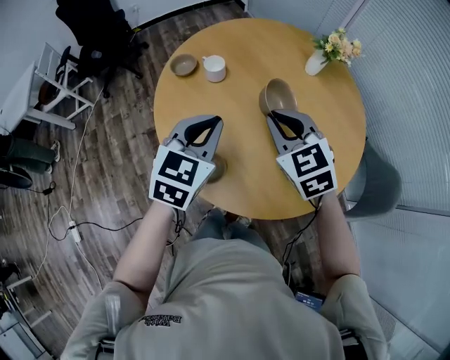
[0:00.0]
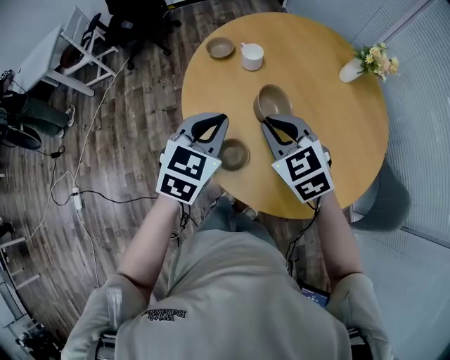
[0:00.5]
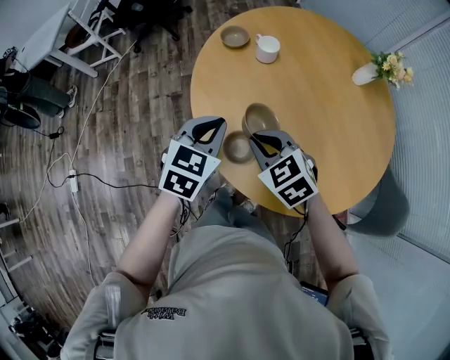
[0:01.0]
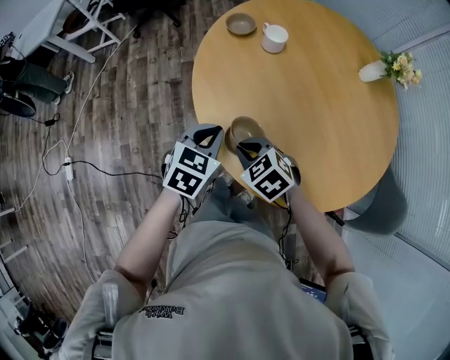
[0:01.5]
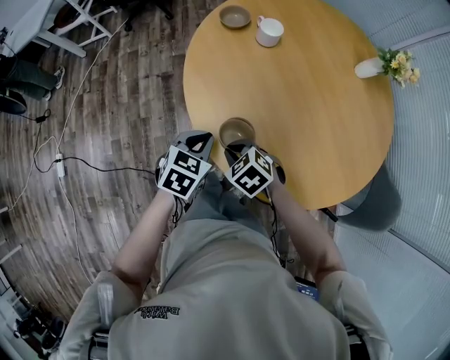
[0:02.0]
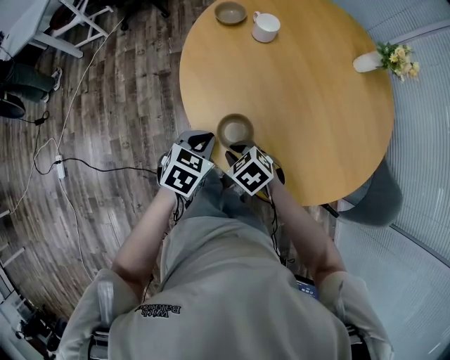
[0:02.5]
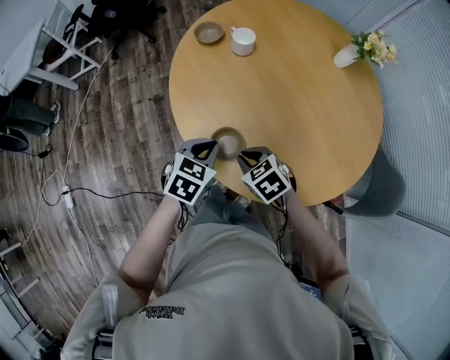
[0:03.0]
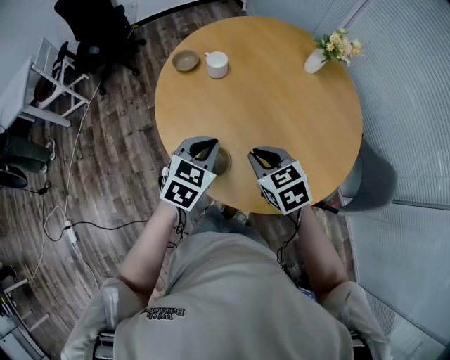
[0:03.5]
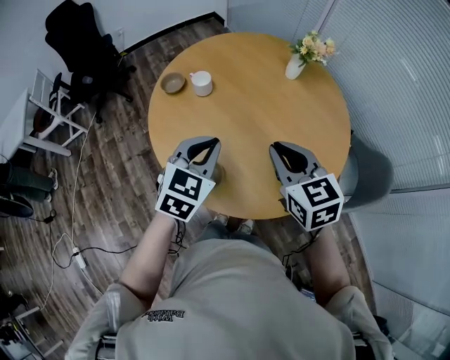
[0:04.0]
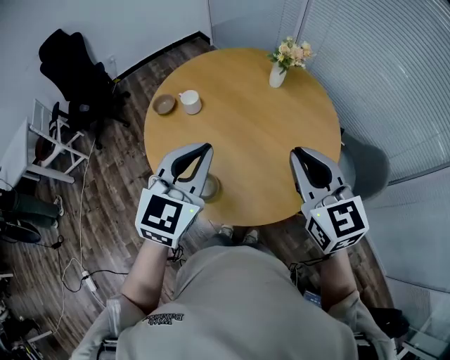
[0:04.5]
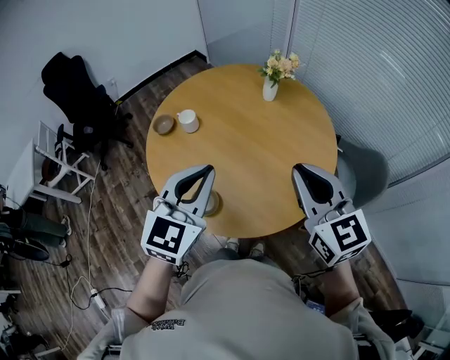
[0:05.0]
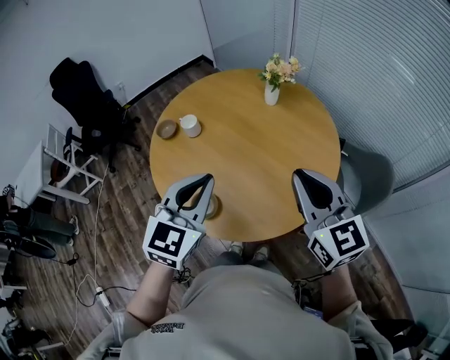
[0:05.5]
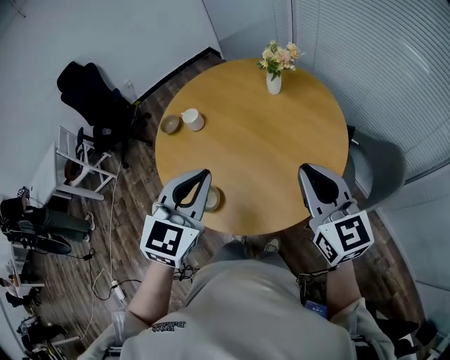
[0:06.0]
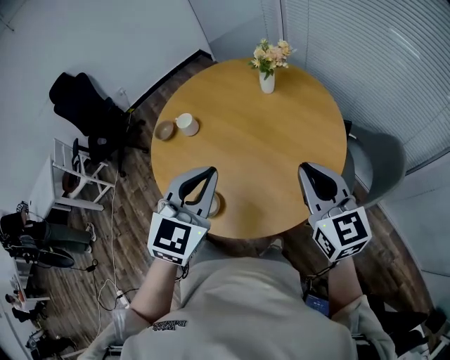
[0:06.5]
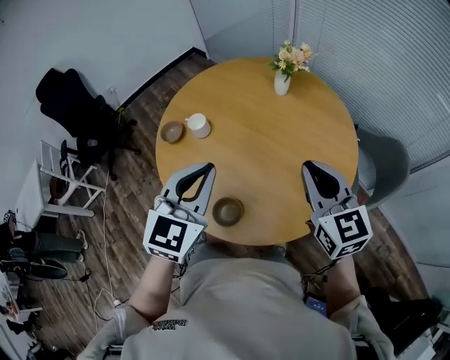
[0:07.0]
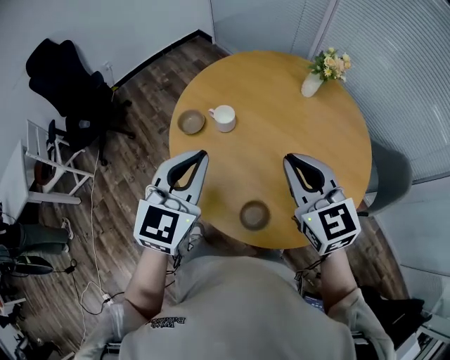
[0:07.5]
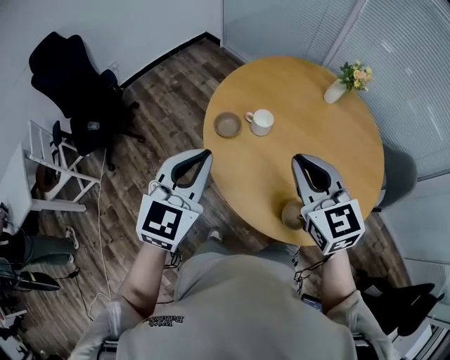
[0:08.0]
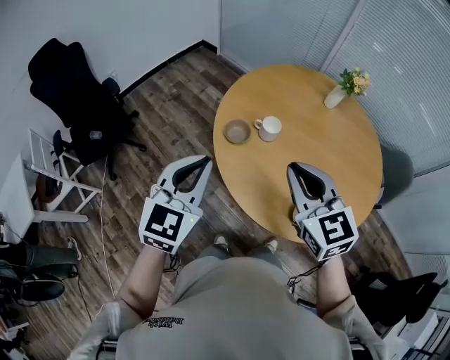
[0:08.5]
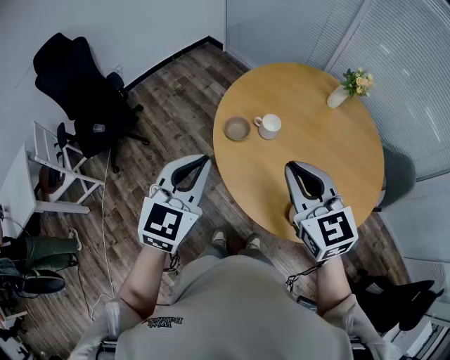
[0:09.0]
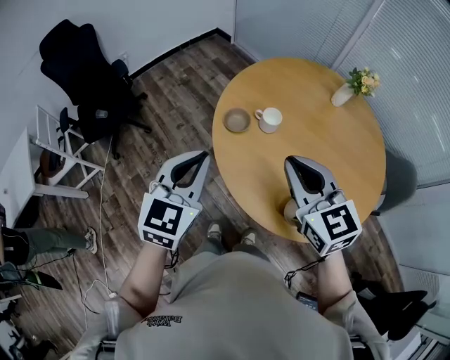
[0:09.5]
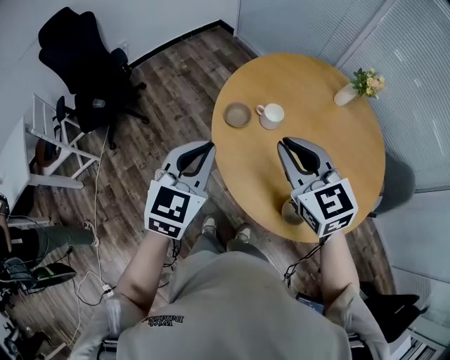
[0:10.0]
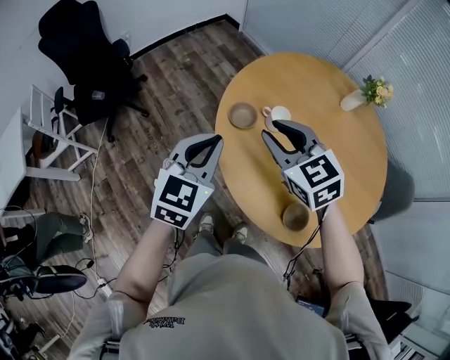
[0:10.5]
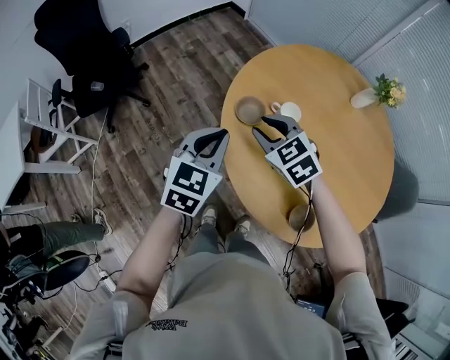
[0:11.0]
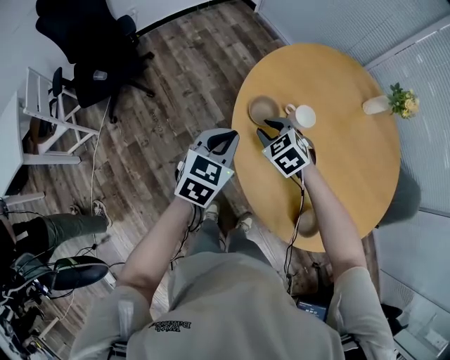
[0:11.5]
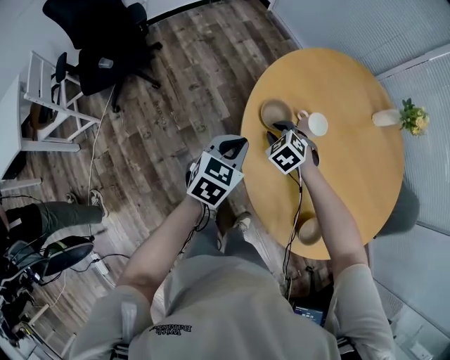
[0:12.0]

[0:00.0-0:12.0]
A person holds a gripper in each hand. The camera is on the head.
0:00.0 to 0:02.0: The grippers both shift downward by about 20 cm. The right gripper changes its angle by about 40 degrees, while the left gripper turns by roughly 30 degrees.
0:02.0 to 0:04.0: Both grippers travel together upward, approximately 20 cm. The left gripper swivels approximately 30 degrees. The right gripper angles its fingers upward, by some 30 degrees.
0:04.0 to 0:06.0: The left gripper heads upward, to the right and backward, covering about 15 cm; the right gripper is displaced to the right and upward by about 20 cm, and turns by some 20 degrees.
0:06.0 to 0:08.0: The two grippers travel together, to the left, approximately 40 cm.
0:08.0 to 0:10.0: The right gripper is displaced to the left by some 5 cm.
0:10.0 to 0:12.0: The right gripper shifts about 35 cm downward and forward, and tips its fingers downward by about 40 degrees; the left gripper moves downward and forward, roughly 20 cm, and changes its angle by approximately 20 degrees.

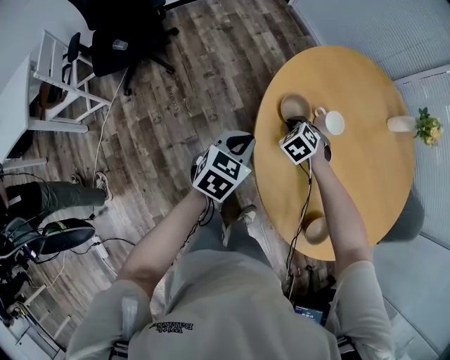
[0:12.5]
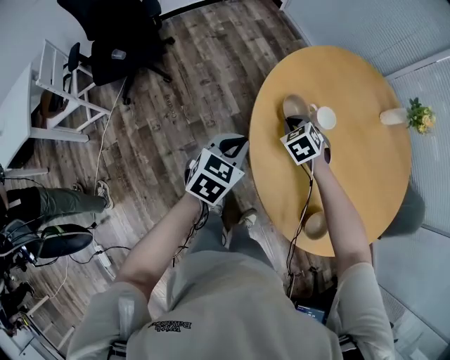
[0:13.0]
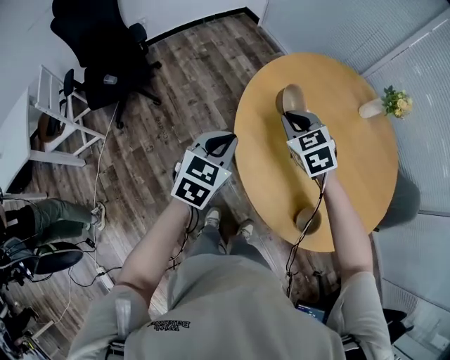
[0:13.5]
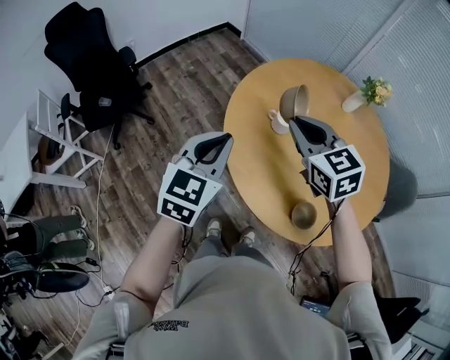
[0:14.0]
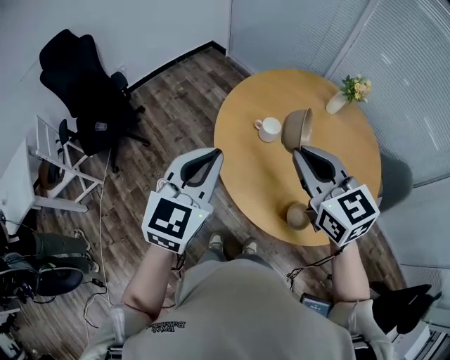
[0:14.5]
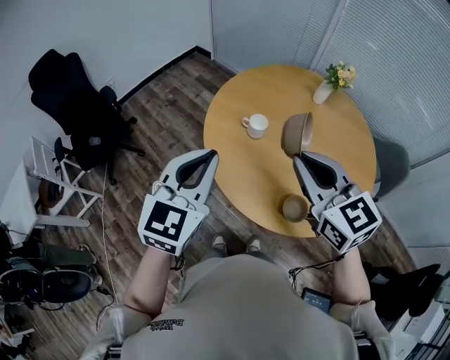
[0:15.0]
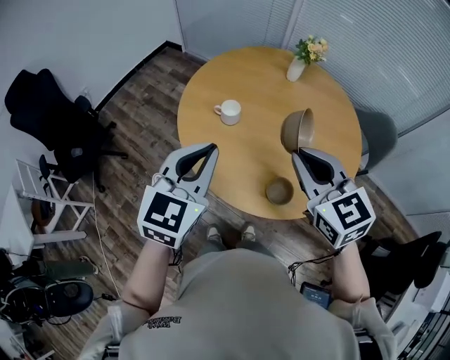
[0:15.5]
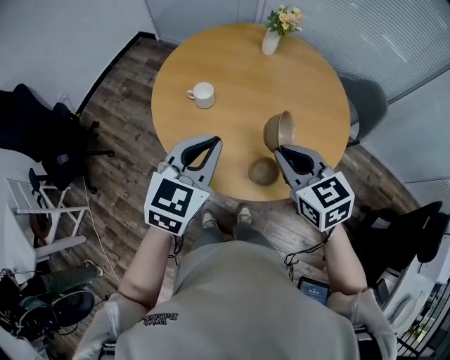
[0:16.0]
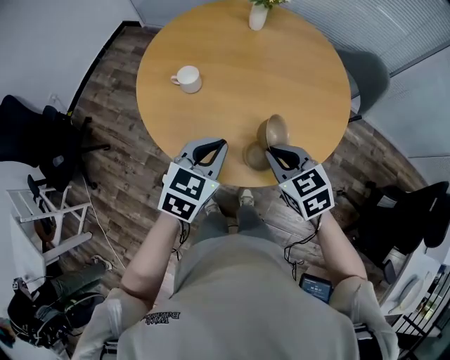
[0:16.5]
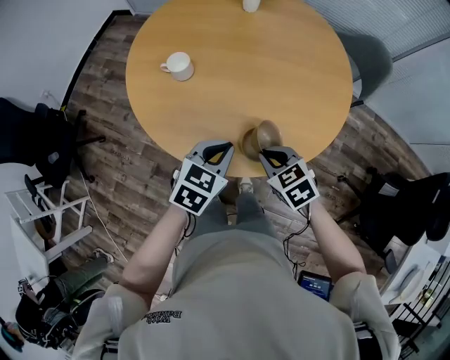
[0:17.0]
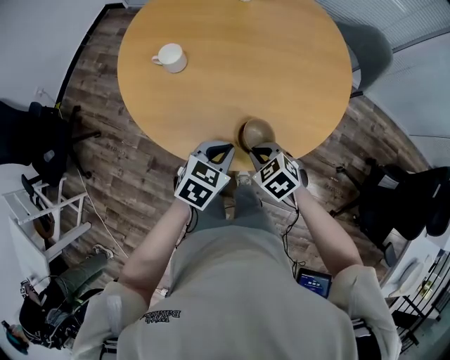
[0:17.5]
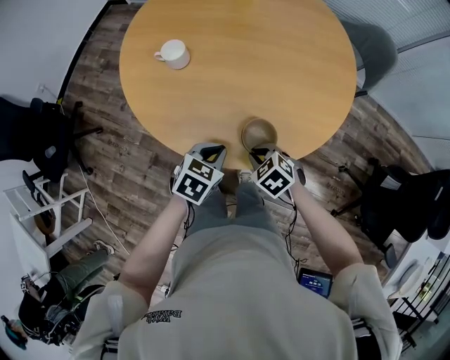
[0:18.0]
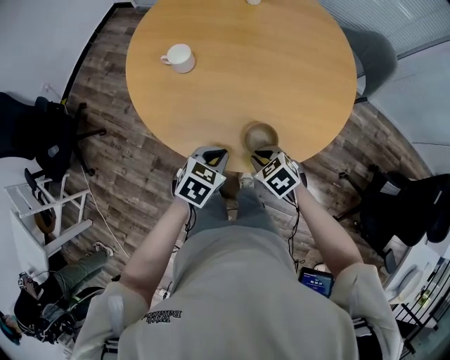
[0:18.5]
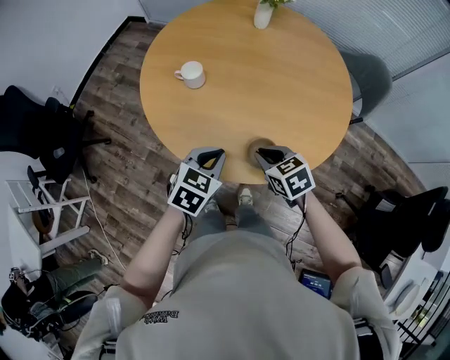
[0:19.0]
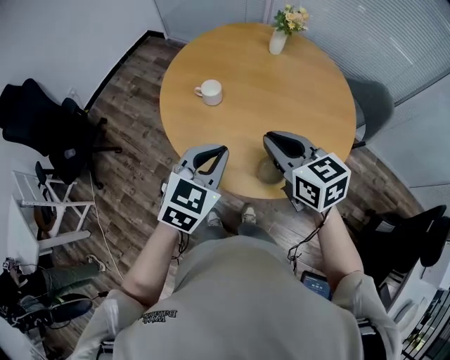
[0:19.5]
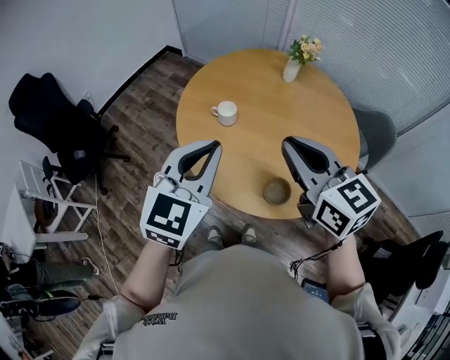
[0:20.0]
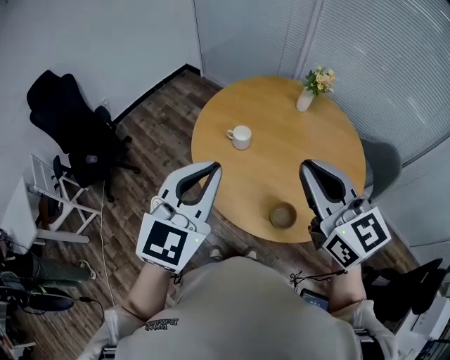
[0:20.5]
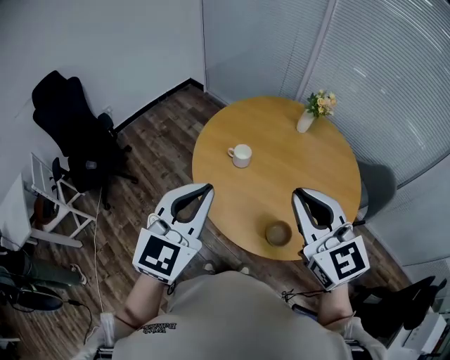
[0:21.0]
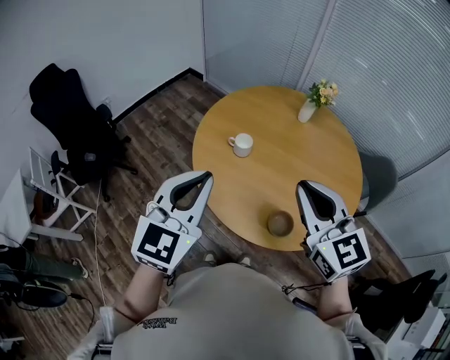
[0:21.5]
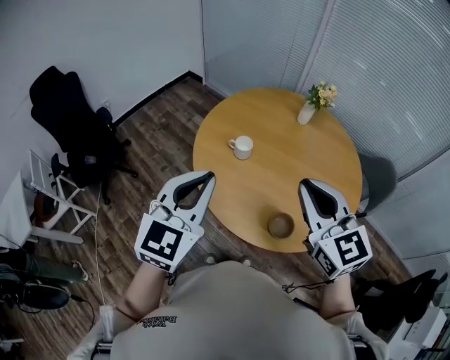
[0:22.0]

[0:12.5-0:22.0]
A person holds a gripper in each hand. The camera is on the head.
0:12.5 to 0:14.5: The left gripper shifts approximately 30 cm upward, and turns by roughly 30 degrees, while the right gripper heads upward and backward, covering roughly 50 cm, and angles its fingers upward, by some 50 degrees.
0:14.5 to 0:16.5: The left gripper is displaced to the right and downward by about 30 cm, and changes its angle by about 40 degrees; the right gripper heads downward and to the right, covering some 30 cm, and rotates about 30 degrees.
0:16.5 to 0:18.0: The grippers both shift downward by approximately 20 cm. The right gripper turns by about 30 degrees; the left gripper rotates roughly 20 degrees.
0:18.0 to 0:20.0: The grippers both shift upward by some 40 cm. The right gripper tips its fingers upward by some 50 degrees, while the left gripper angles its fingers upward, by about 40 degrees.
0:20.0 to 0:22.0: The left gripper travels to the left by approximately 5 cm.

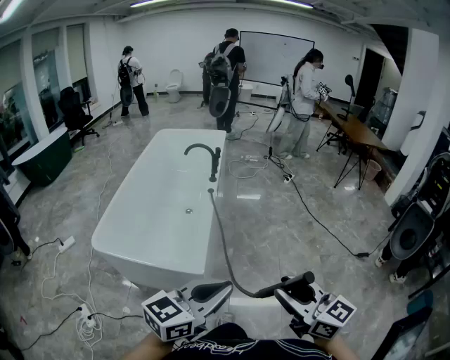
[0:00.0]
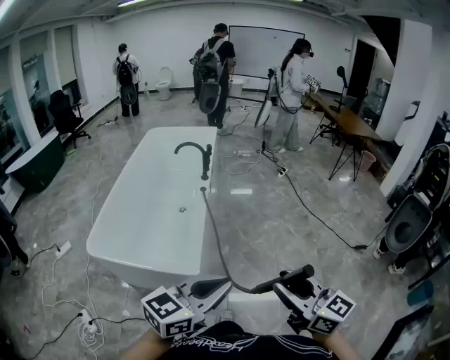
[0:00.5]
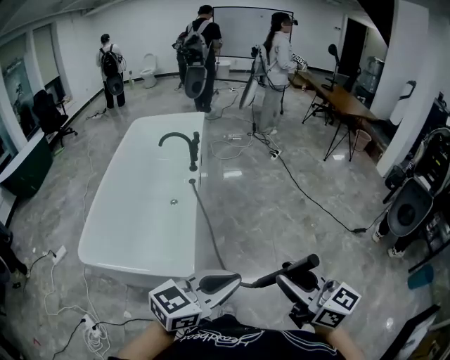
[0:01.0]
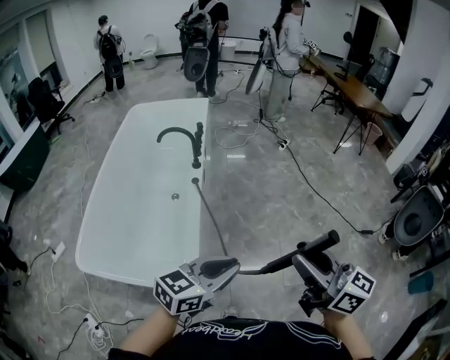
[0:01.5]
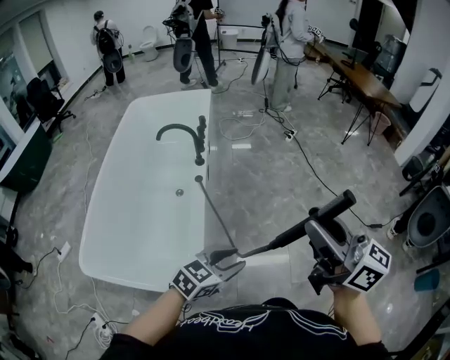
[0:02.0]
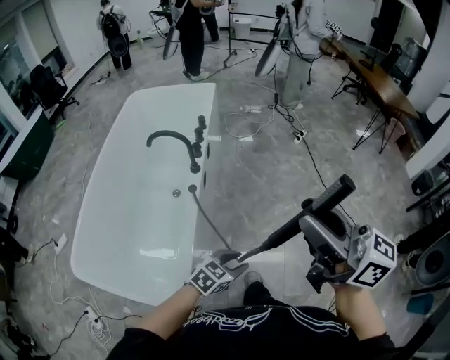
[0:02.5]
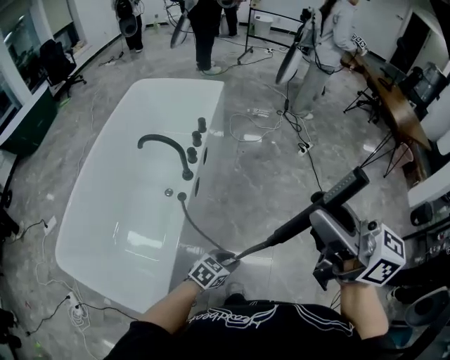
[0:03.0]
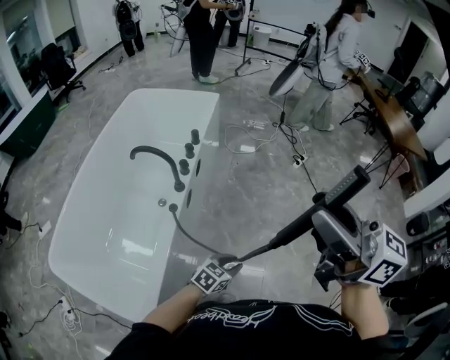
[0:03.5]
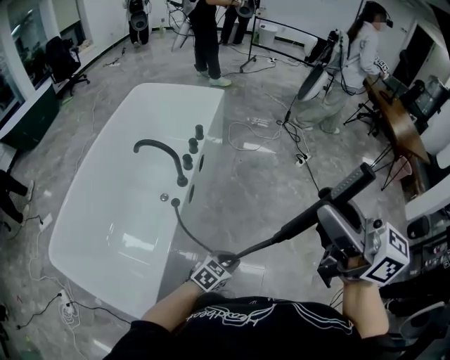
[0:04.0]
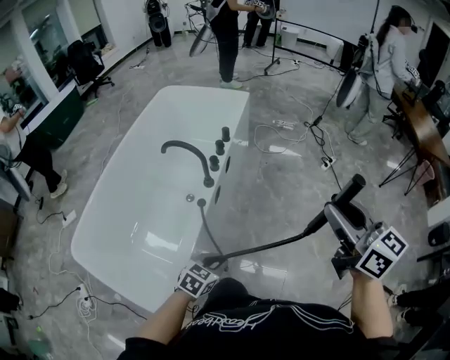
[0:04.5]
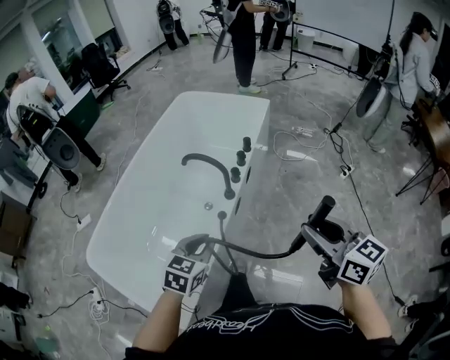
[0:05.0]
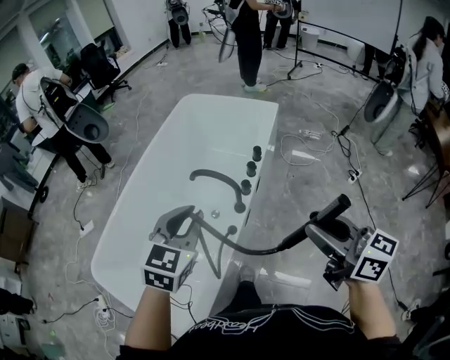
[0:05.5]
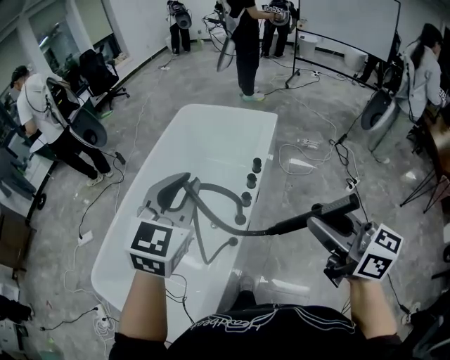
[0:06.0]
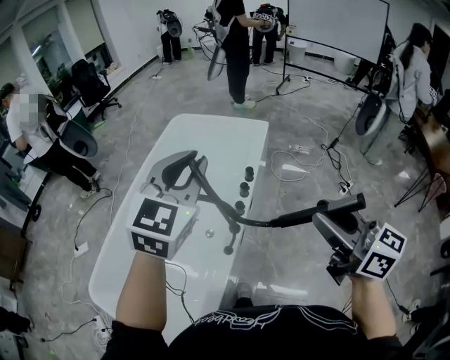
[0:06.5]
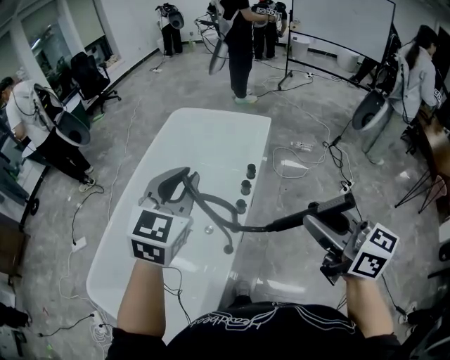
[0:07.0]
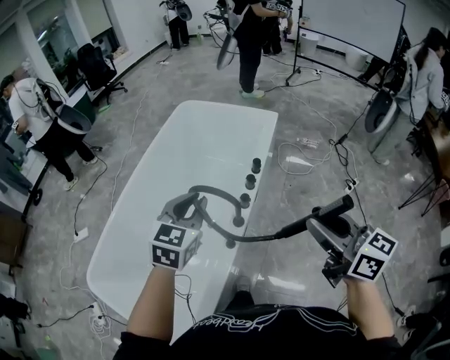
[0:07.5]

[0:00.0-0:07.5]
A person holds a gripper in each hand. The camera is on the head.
0:00.0 to 0:02.0: The right gripper goes about 30 cm forward. The left gripper goes some 35 cm forward and downward, changes its angle by approximately 30 degrees, and opens up.
0:02.0 to 0:04.0: The left gripper is displaced forward, downward and to the right by approximately 35 cm. Meanwhile the right gripper goes roughly 30 cm forward.
0:04.0 to 0:05.5: The right gripper shifts by about 20 cm. Meanwhile the left gripper changes place by some 50 cm, and turns by about 50 degrees.
0:05.5 to 0:07.5: The left gripper is displaced forward by roughly 10 cm, and goes upward and returns, about 15 cm each way. Meanwhile the right gripper travels forward by some 5 cm.
